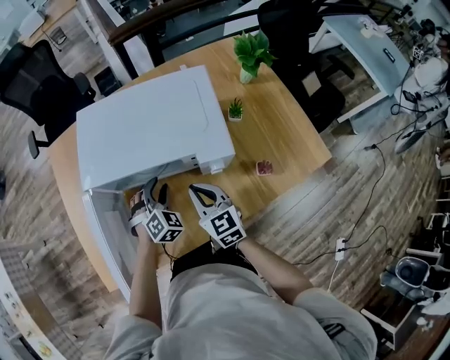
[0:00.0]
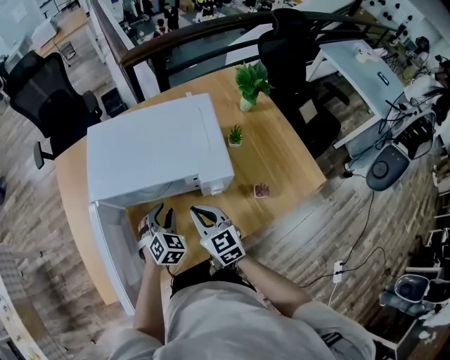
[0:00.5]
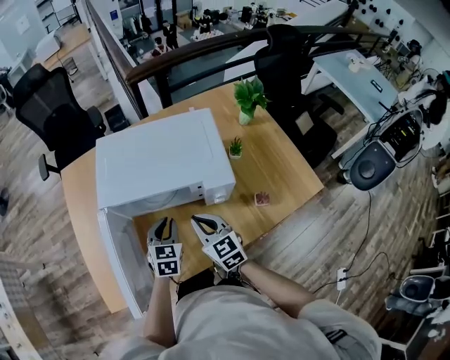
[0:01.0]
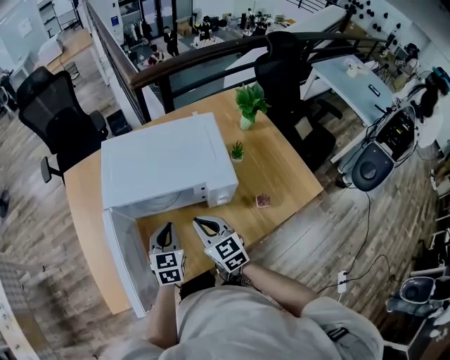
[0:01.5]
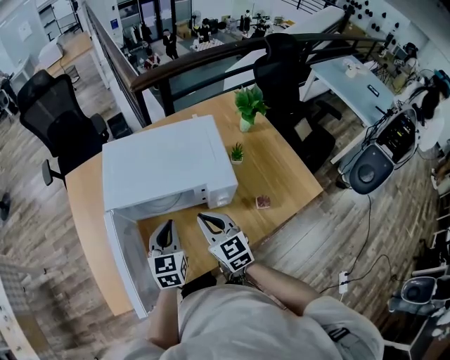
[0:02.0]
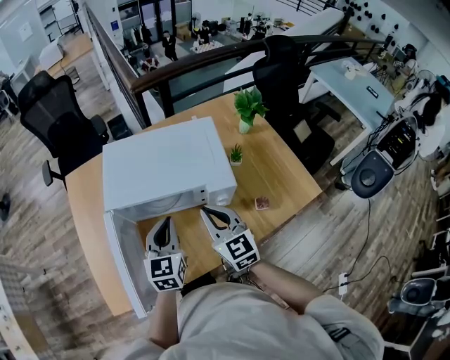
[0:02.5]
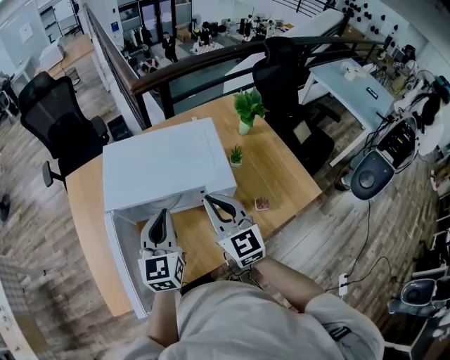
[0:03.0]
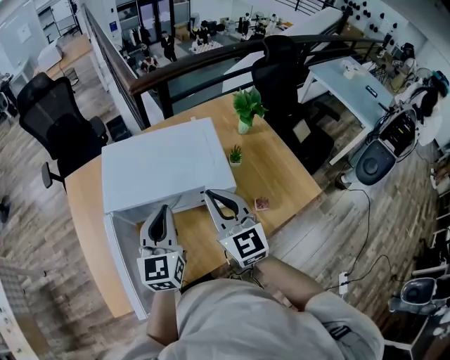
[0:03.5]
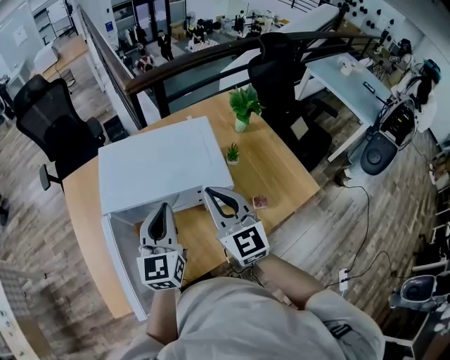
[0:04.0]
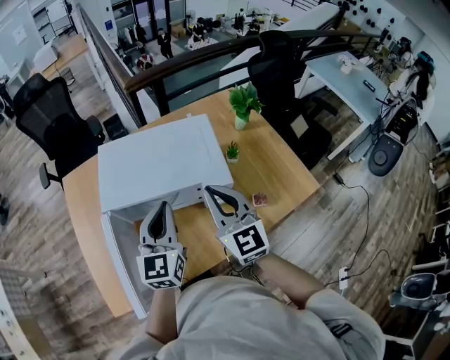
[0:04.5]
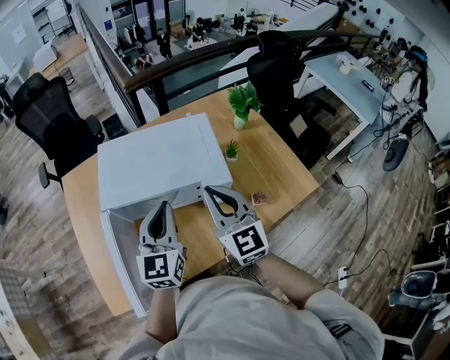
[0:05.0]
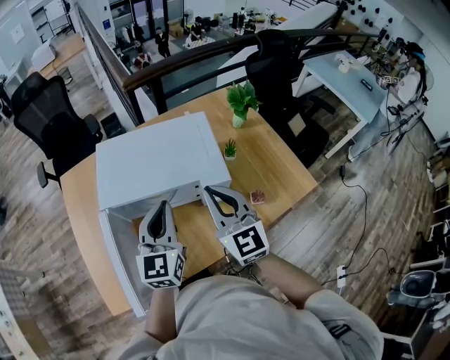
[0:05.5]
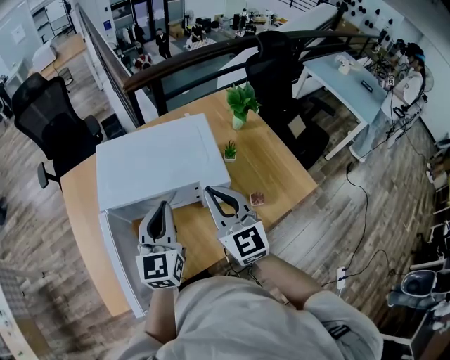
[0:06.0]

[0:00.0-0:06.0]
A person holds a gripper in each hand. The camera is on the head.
0:00.0 to 0:02.0: The right gripper moves upward, approximately 5 cm, while the left gripper heads upward and backward, covering roughly 15 cm, rolls counterclockwise, seen from behind, by approximately 50 degrees, and closes up.
0:02.0 to 0:04.0: Both grippers travel together upward, roughly 15 cm.
0:04.0 to 0:06.0: The two grippers keep their place.

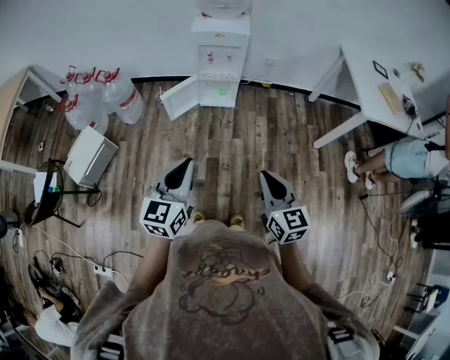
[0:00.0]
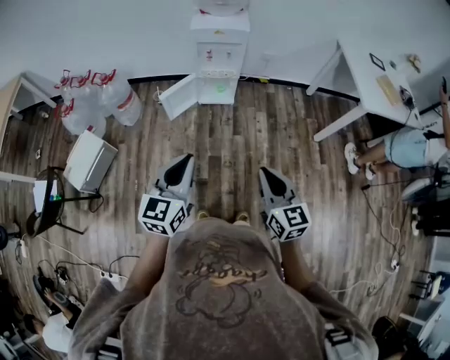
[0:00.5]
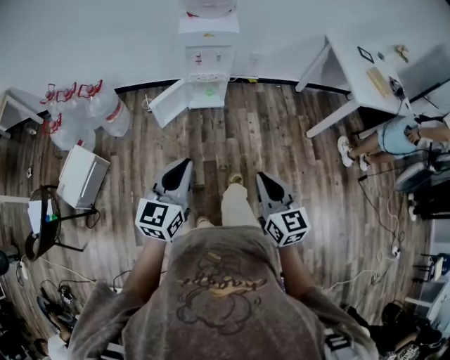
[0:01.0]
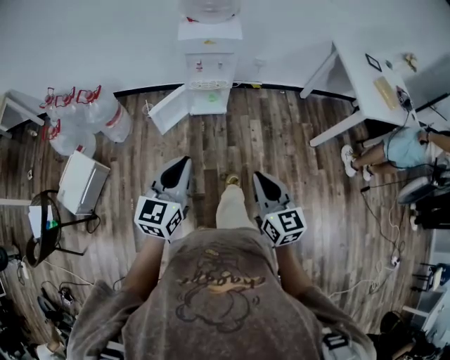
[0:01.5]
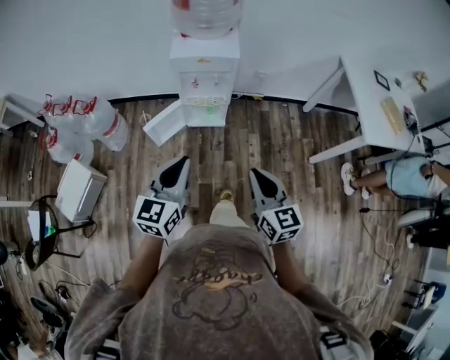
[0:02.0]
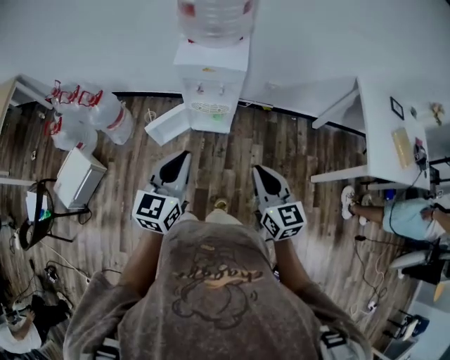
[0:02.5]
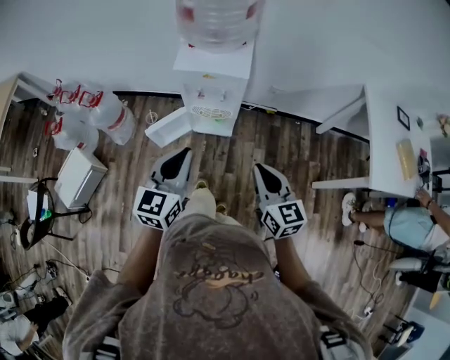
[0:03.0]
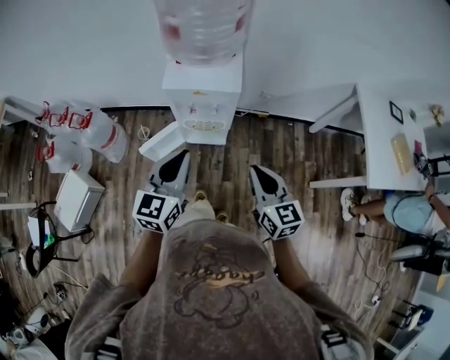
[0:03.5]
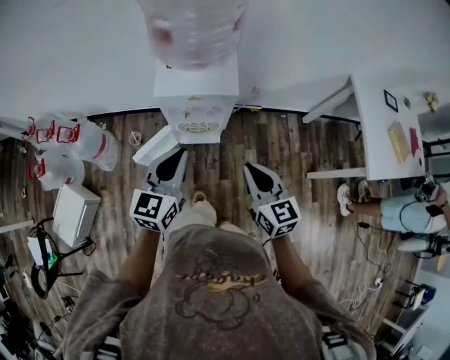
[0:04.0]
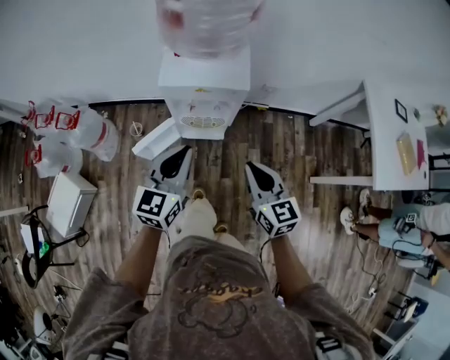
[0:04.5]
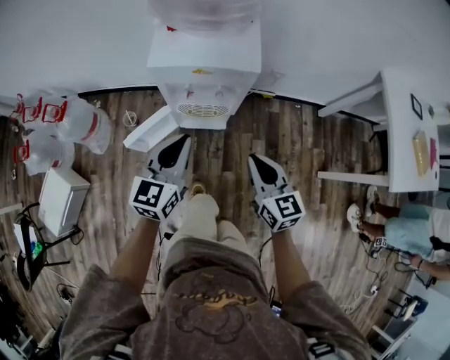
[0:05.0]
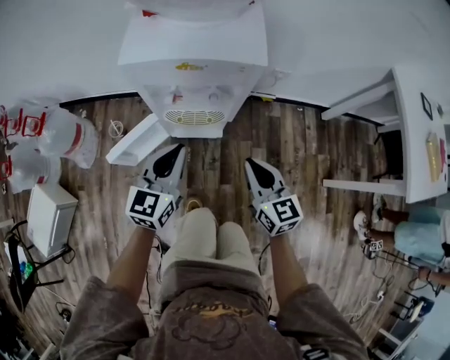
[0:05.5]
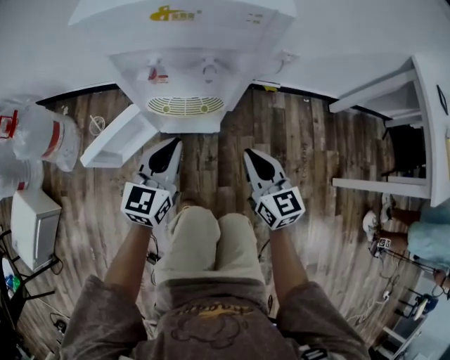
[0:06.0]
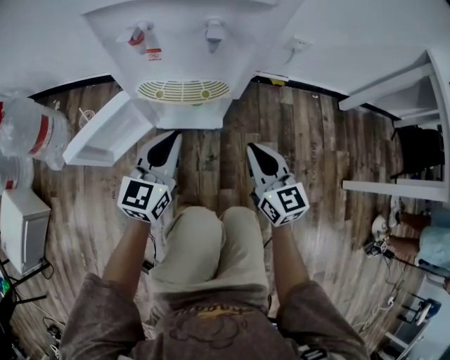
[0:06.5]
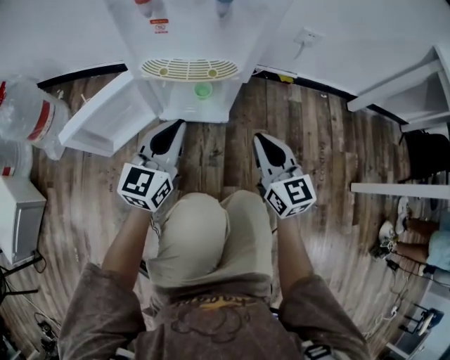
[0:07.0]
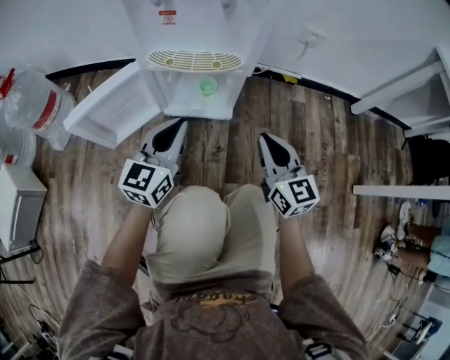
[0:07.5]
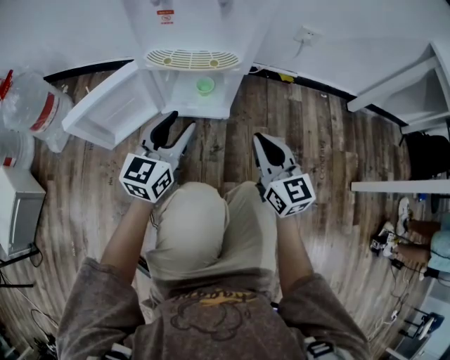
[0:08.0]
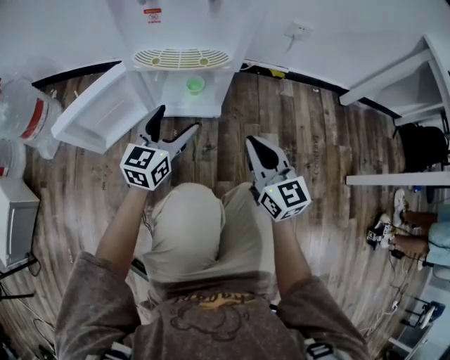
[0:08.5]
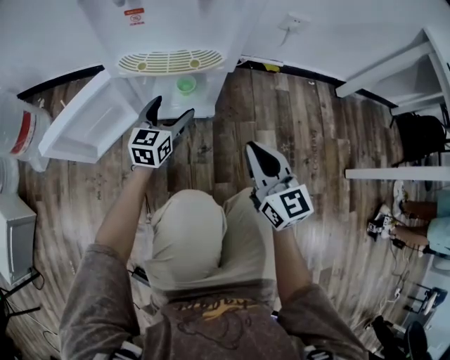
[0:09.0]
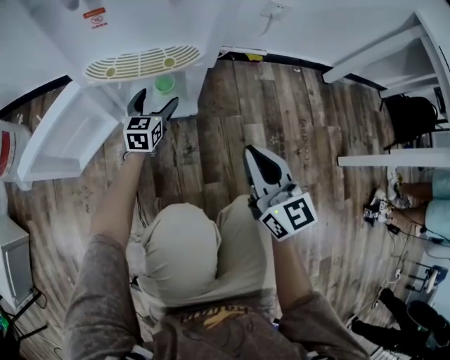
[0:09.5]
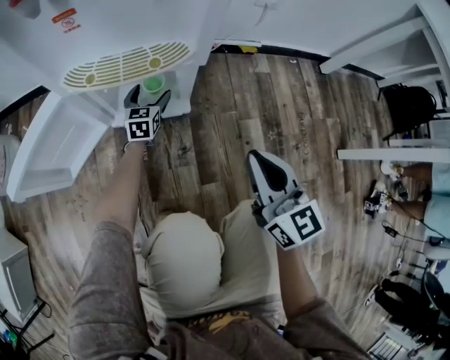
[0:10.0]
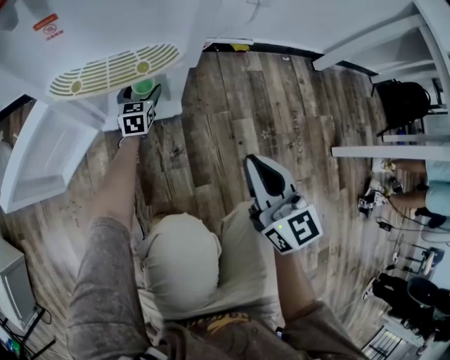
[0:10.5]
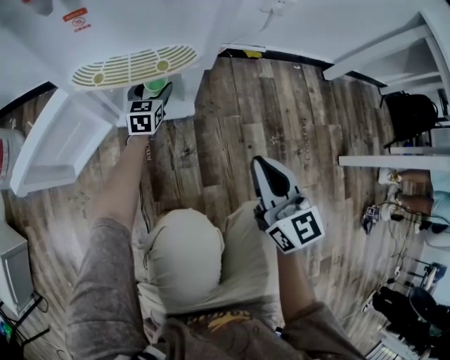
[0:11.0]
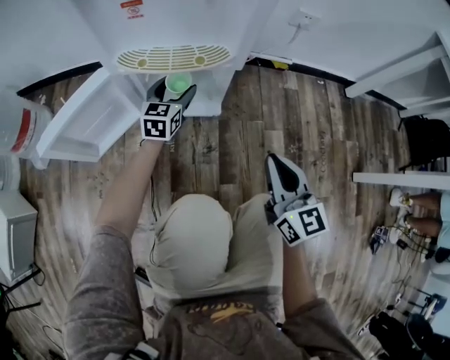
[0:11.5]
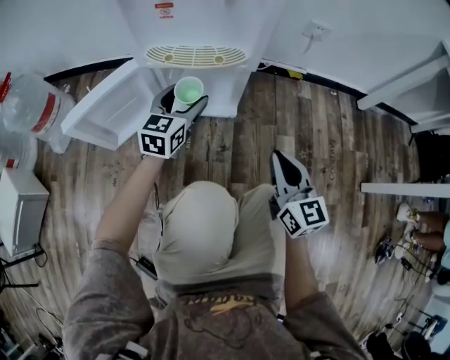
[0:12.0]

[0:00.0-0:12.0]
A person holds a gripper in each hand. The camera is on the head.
0:00.0 to 0:02.0: Both grippers travel together forward, approximately 25 cm.
0:02.0 to 0:04.0: The two grippers go roughly 25 cm forward.
0:04.0 to 0:06.0: Both grippers travel together downward, approximately 50 cm.
0:06.0 to 0:08.0: The grippers both shift downward by roughly 15 cm. The left gripper opens its fingers.
0:08.0 to 0:10.0: The left gripper heads downward and forward, covering about 35 cm, and opens its fingers.
0:10.0 to 0:12.0: The left gripper is displaced upward and backward by approximately 25 cm.

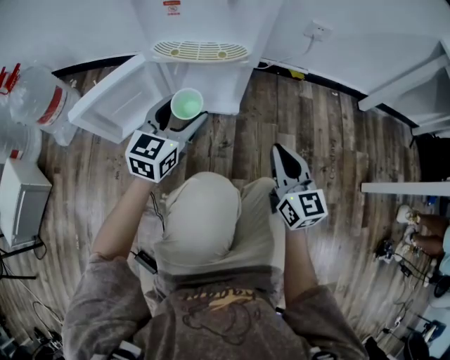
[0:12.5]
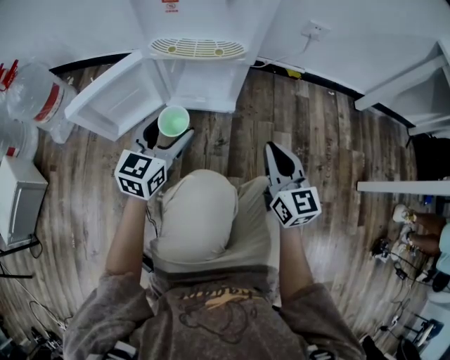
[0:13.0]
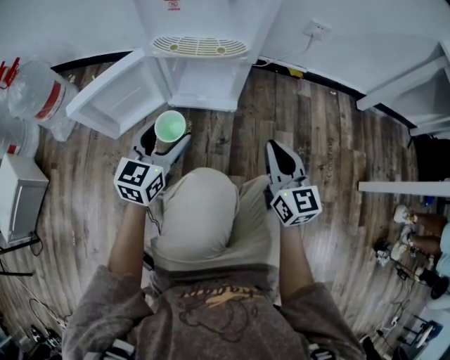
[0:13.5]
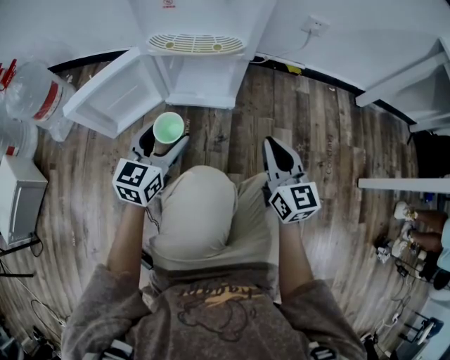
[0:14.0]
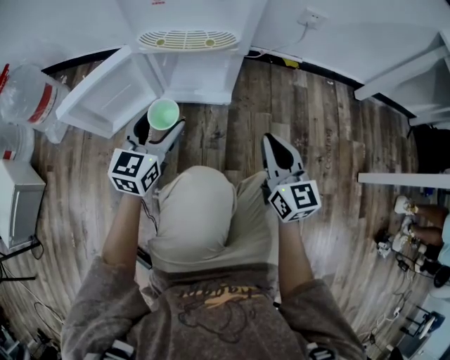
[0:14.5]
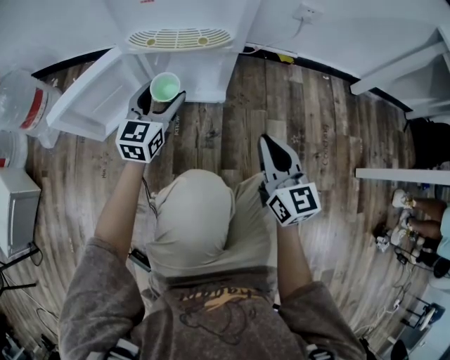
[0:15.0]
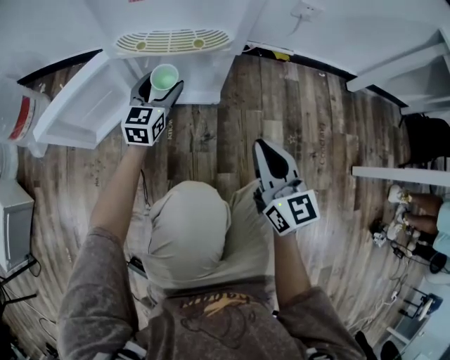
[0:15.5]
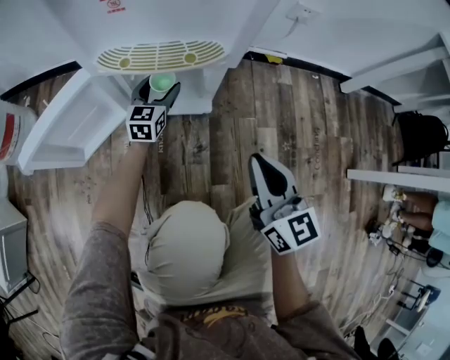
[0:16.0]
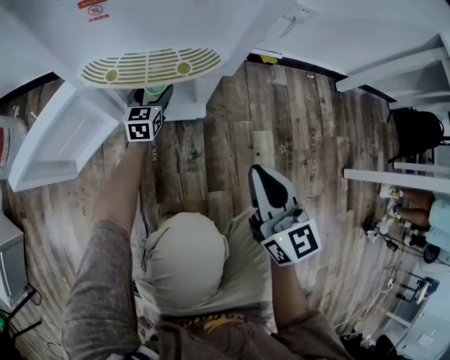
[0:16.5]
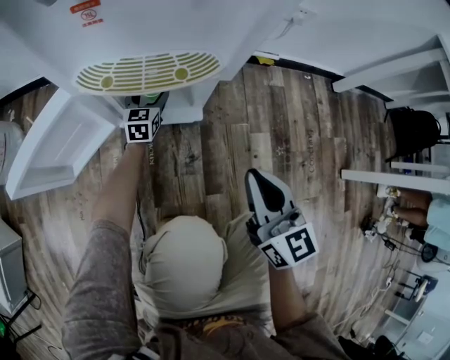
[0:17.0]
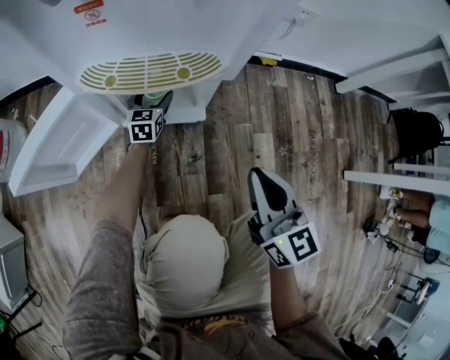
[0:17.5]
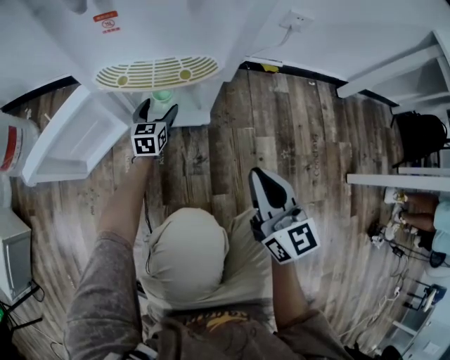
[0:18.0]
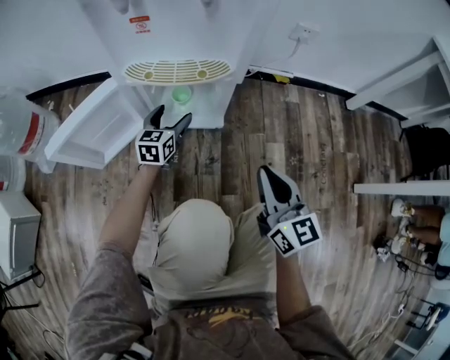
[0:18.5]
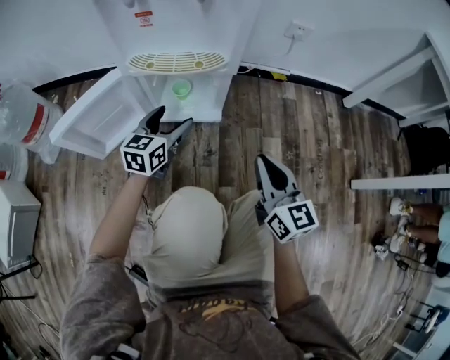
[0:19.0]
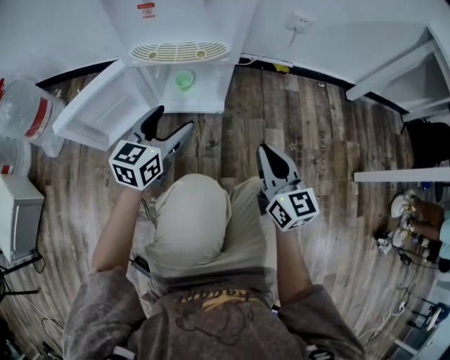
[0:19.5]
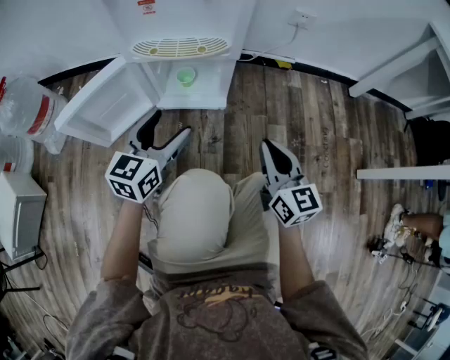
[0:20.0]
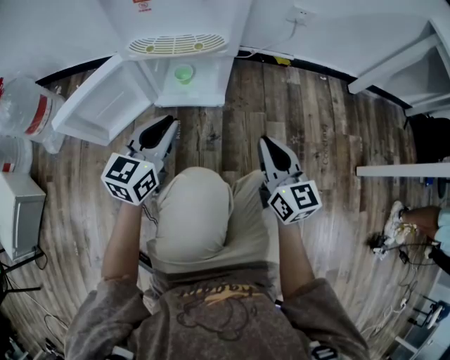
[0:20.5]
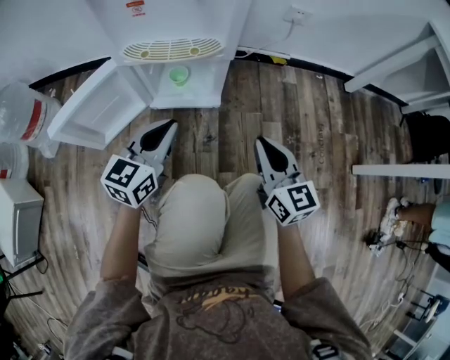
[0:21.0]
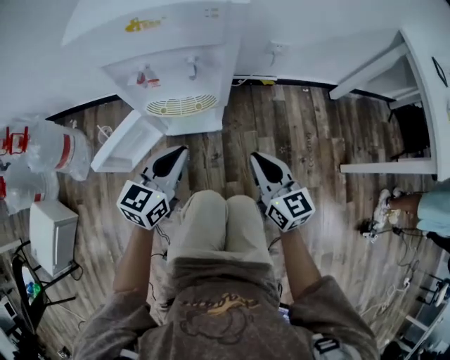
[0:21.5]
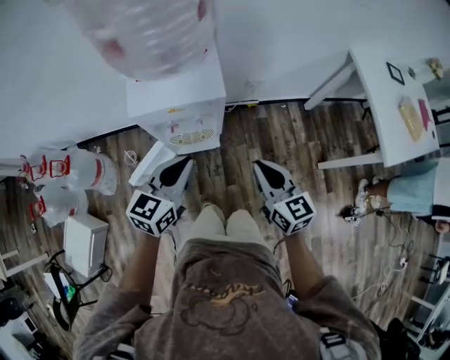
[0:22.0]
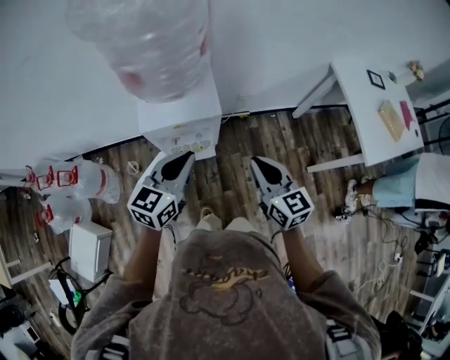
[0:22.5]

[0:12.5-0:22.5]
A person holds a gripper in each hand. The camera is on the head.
0:14.5 to 0:16.5: The left gripper shifts approximately 35 cm forward and downward.
0:16.5 to 0:18.5: The left gripper is displaced backward and upward by some 15 cm.
0:18.5 to 0:20.5: The left gripper shifts about 25 cm backward and upward, and closes.
0:20.5 to 0:22.5: Both grippers move upward, about 60 cm.
